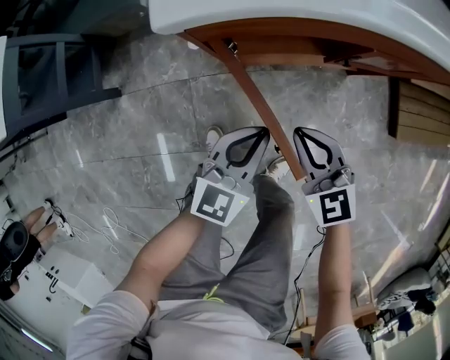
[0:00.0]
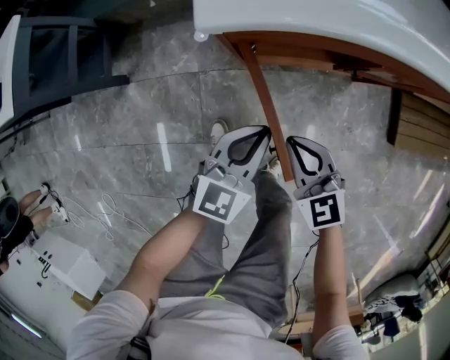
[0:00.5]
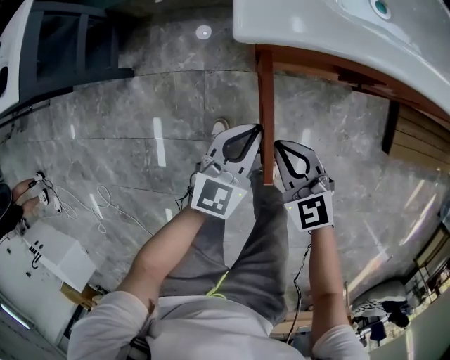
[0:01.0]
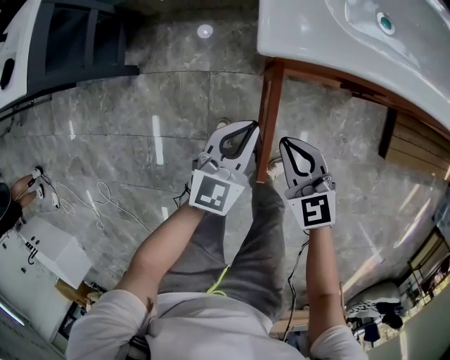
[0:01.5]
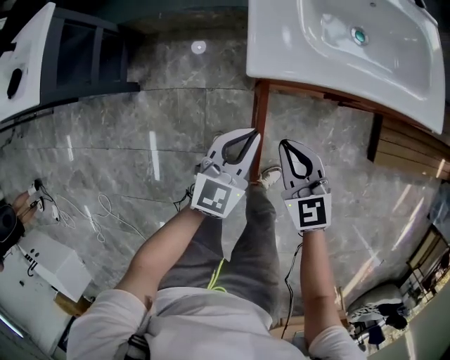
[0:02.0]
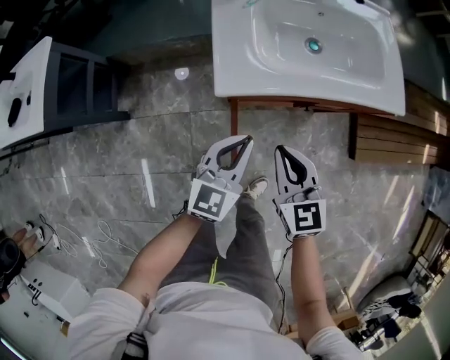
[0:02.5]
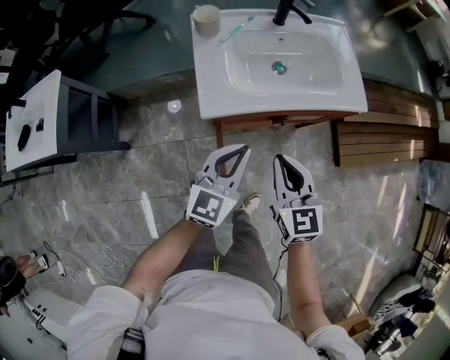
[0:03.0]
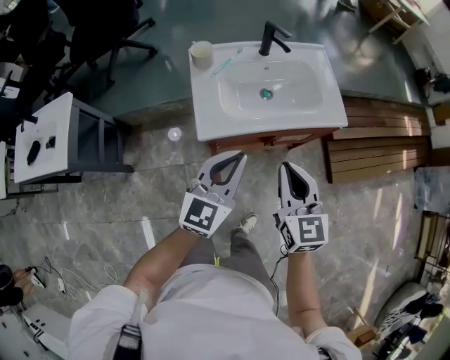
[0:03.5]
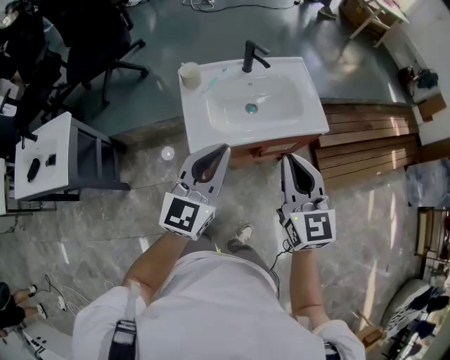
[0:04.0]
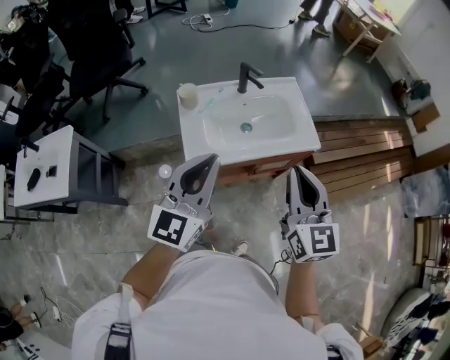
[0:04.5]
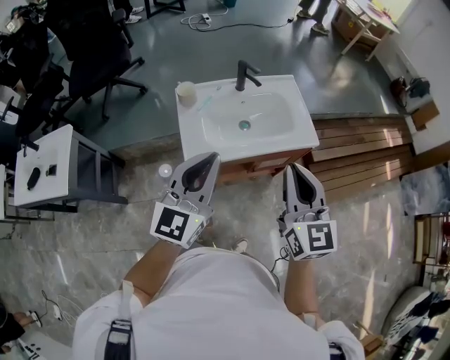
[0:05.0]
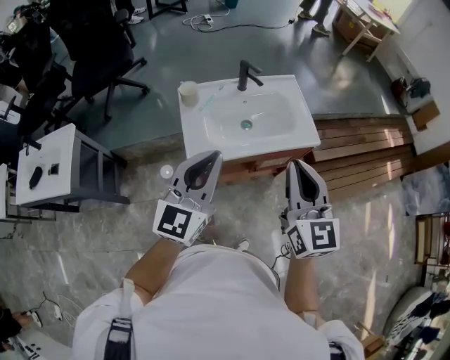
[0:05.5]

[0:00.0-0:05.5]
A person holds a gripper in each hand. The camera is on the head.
0.0 to 2.0 s: The grippers both shift upward and to the left by some 15 cm.
2.0 to 3.5 s: The right gripper heads upward and to the right, covering some 35 cm, and changes its angle by some 30 degrees. Meanwhile the left gripper is displaced upward by some 30 cm.
3.5 to 5.5 s: Both grippers travel together upward, about 15 cm.

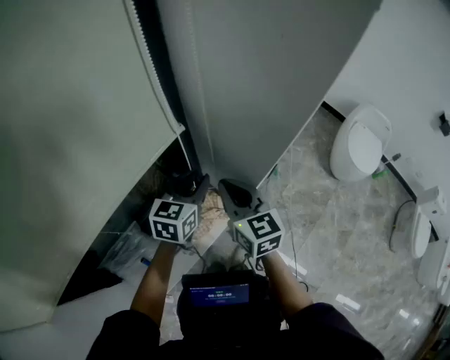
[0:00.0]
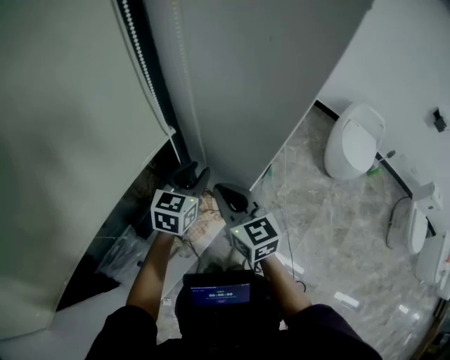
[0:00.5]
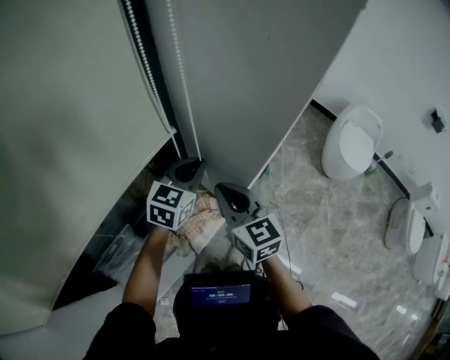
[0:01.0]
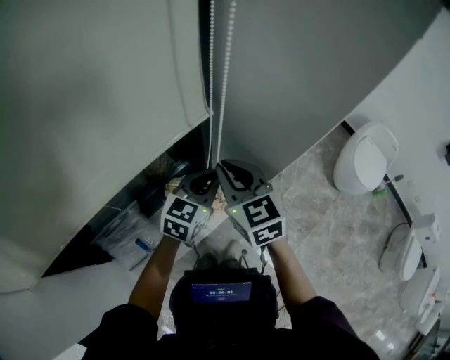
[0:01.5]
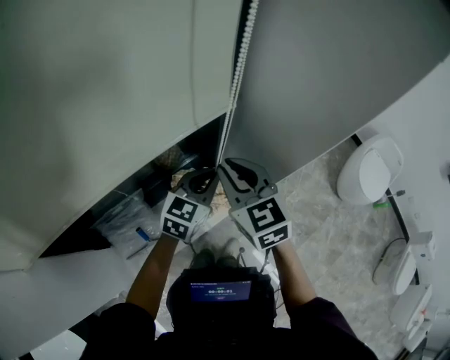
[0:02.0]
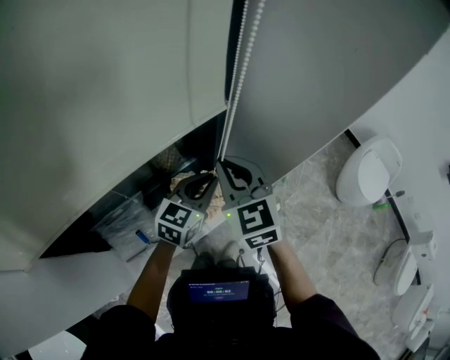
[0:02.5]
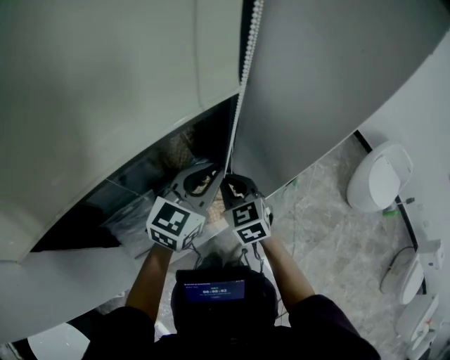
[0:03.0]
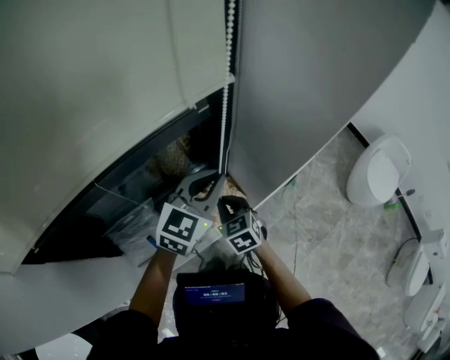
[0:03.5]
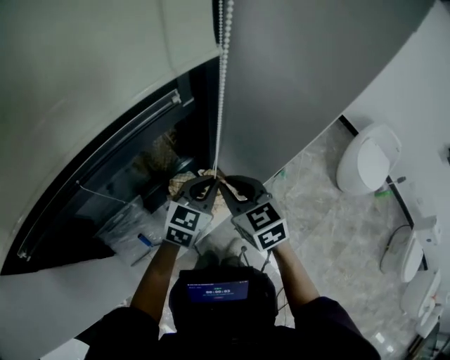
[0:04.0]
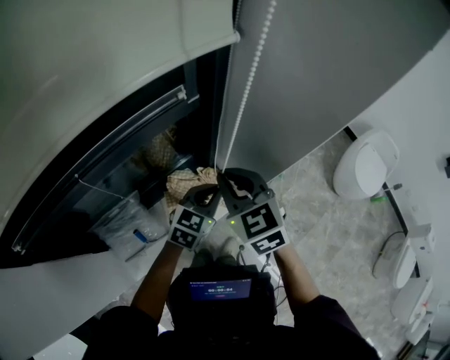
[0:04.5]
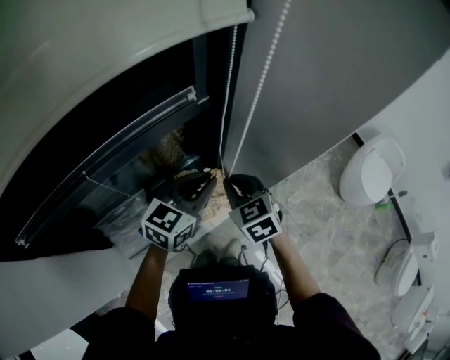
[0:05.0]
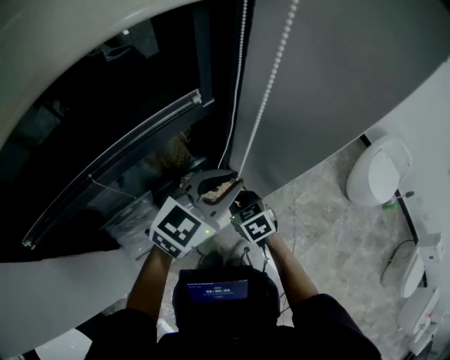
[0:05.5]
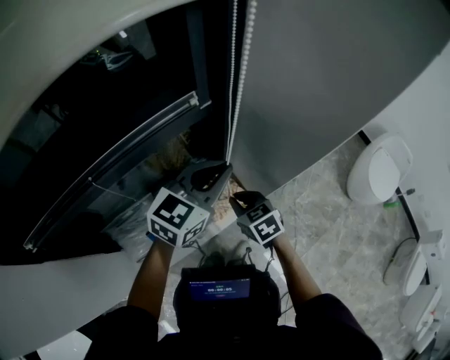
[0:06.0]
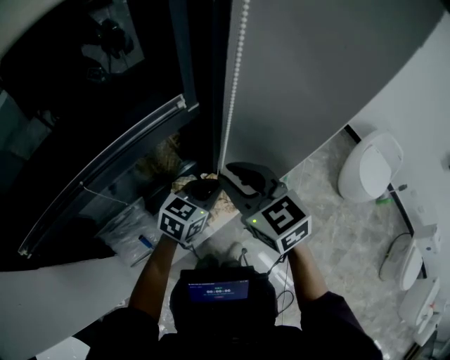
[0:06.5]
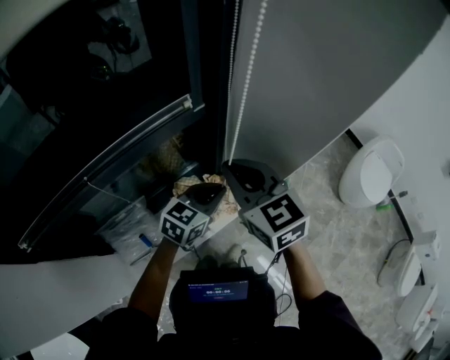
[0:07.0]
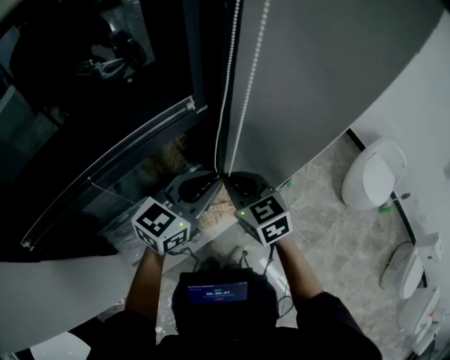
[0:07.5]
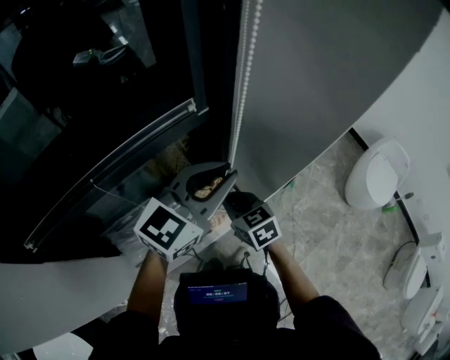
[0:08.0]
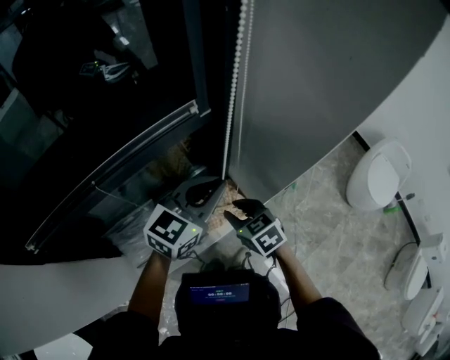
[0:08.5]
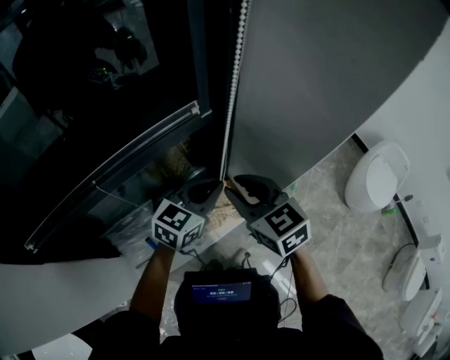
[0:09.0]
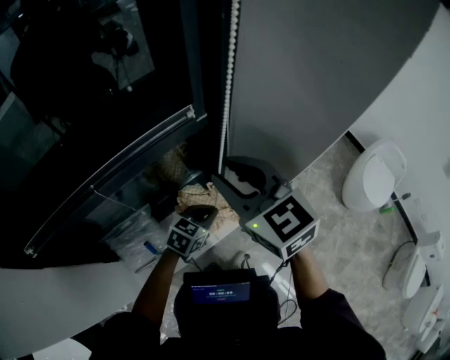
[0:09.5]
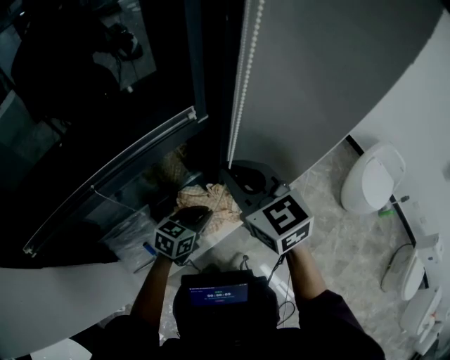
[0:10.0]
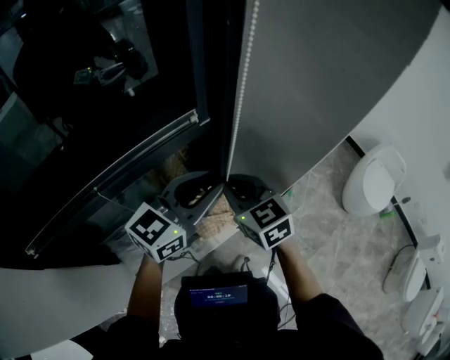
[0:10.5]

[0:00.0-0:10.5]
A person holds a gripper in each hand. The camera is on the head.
0.0 to 2.0 s: The left gripper heads backward, covering some 5 cm, and closes up. Meanwhile the right gripper moves to the left, roughly 10 cm, and rotates some 20 degrees.
2.0 to 4.0 s: The right gripper goes downward and returns, about 20 cm each way, while the left gripper travels upward and back again, about 10 cm each way.
4.0 to 6.5 s: The right gripper swings up and down, about 20 cm each way, with 2 reversals; the left gripper goes up and down, some 15 cm each way, reversing 2 times.
6.5 to 8.5 s: The right gripper is displaced downward by about 20 cm, and turns by some 20 degrees, while the left gripper heads upward, covering approximately 10 cm.
8.5 to 10.5 s: The right gripper heads upward and forward, covering roughly 15 cm, changes its angle by some 20 degrees, and closes up. The left gripper reaches roughly 20 cm downward, then returns.

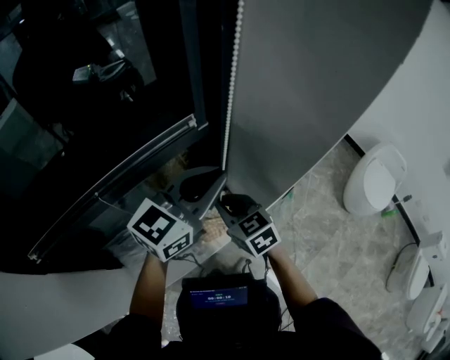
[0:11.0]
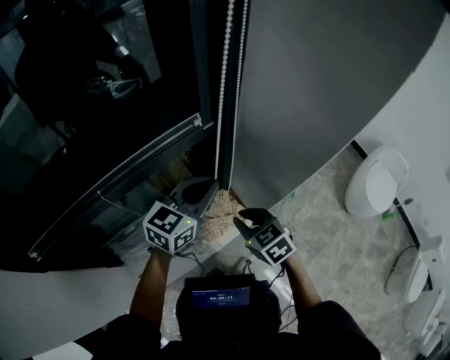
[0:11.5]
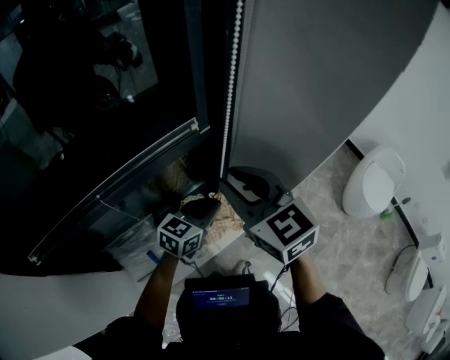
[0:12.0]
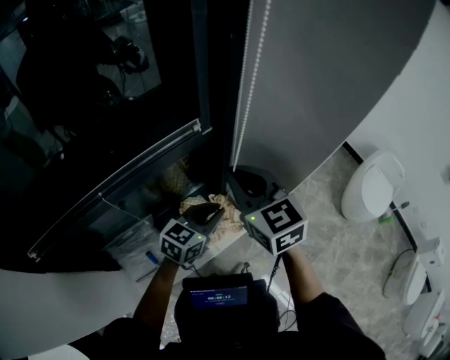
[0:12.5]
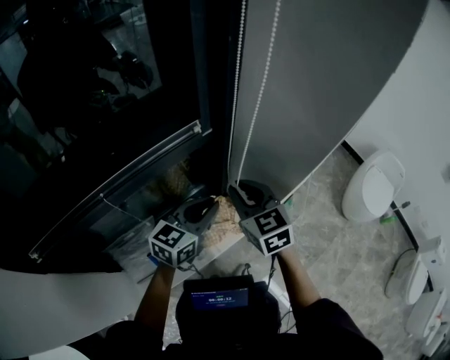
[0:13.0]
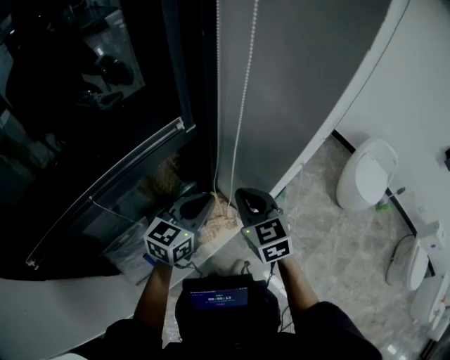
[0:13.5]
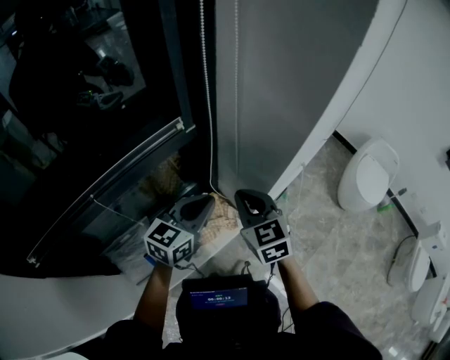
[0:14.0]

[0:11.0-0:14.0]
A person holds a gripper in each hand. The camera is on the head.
11.0 to 12.5 s: The right gripper goes some 15 cm upward. The left gripper heads downward, covering approximately 20 cm, and turns by roughly 20 degrees.
12.5 to 14.0 s: The right gripper goes some 10 cm downward and to the right. Meanwhile the left gripper is displaced upward by some 5 cm.

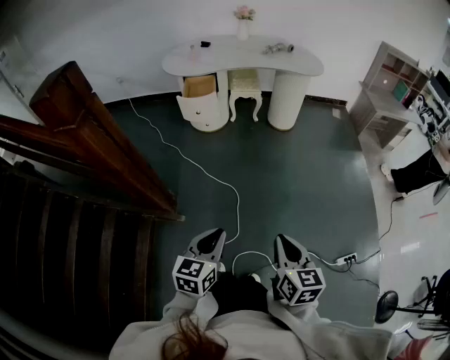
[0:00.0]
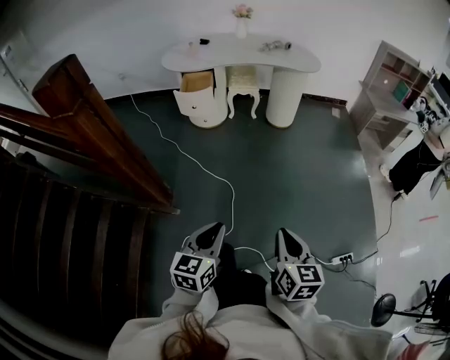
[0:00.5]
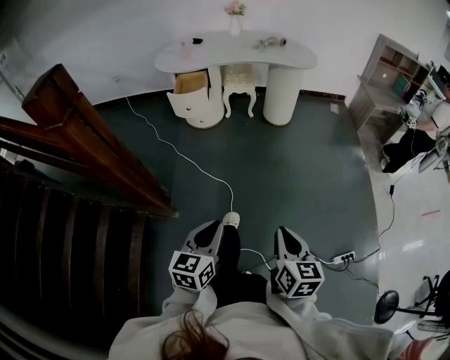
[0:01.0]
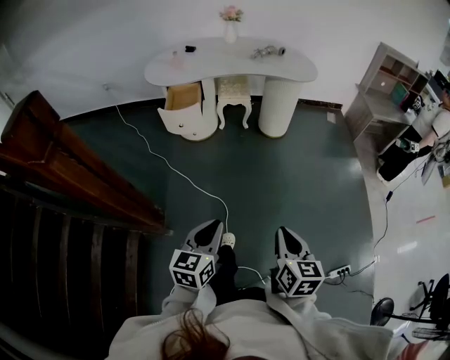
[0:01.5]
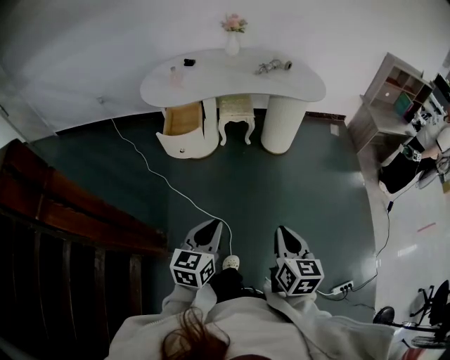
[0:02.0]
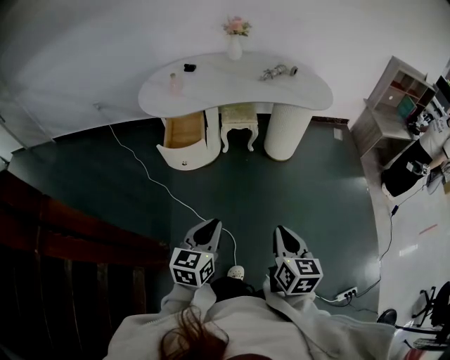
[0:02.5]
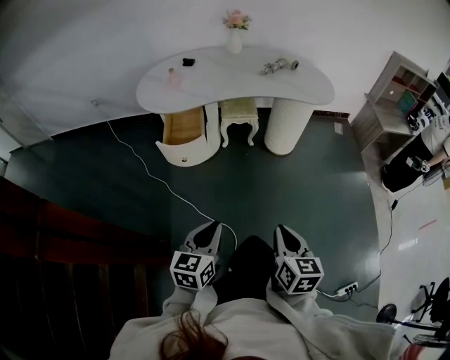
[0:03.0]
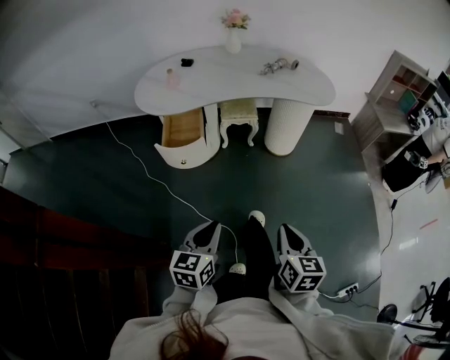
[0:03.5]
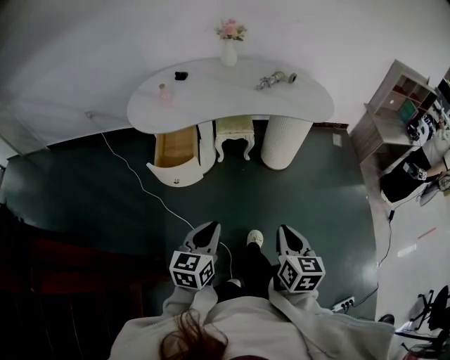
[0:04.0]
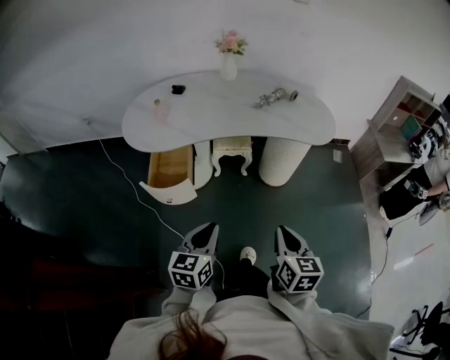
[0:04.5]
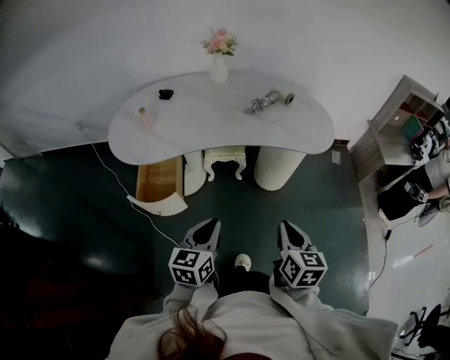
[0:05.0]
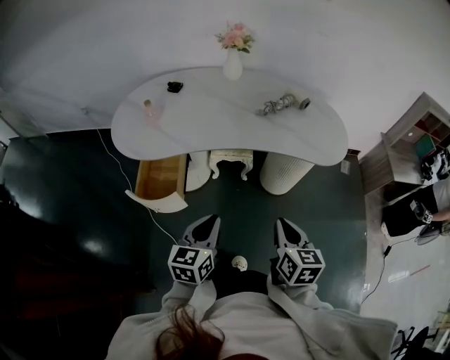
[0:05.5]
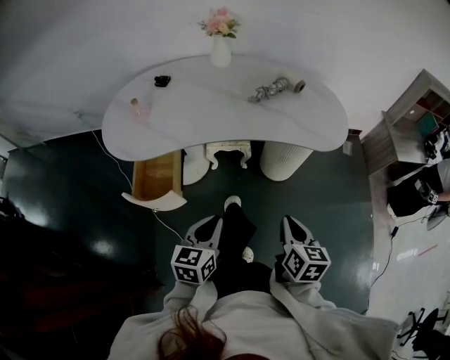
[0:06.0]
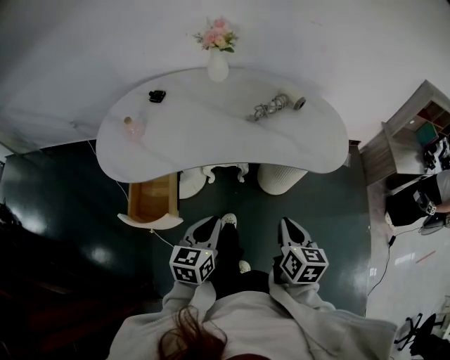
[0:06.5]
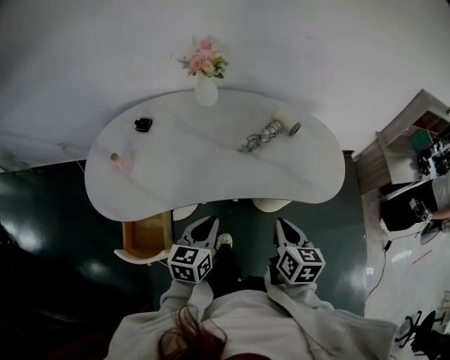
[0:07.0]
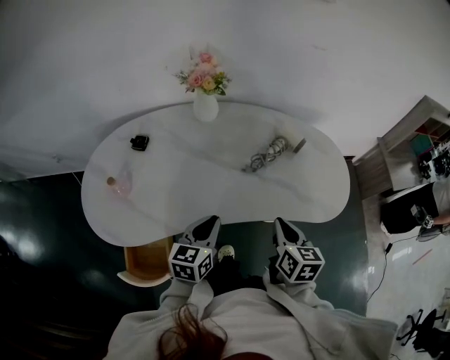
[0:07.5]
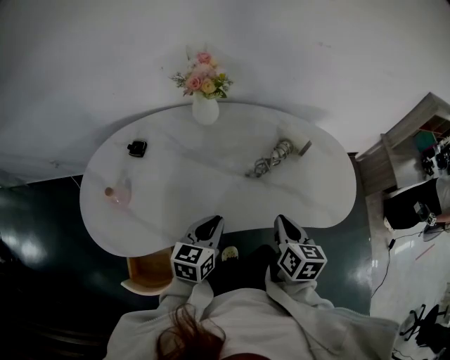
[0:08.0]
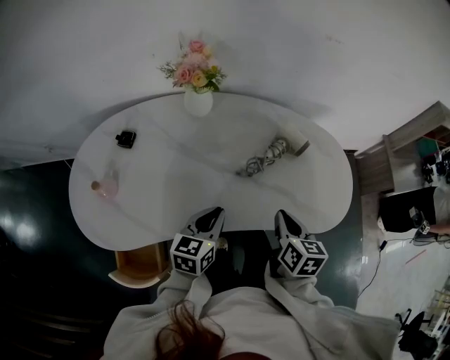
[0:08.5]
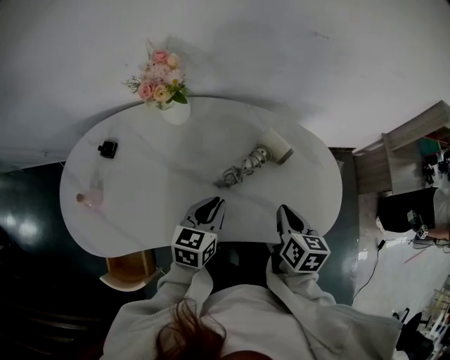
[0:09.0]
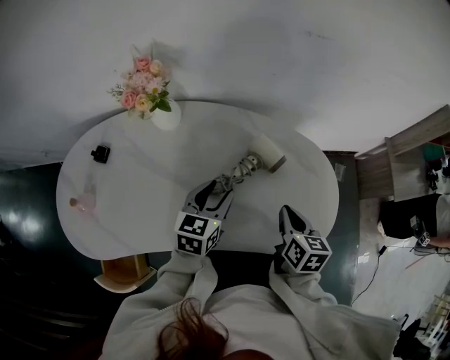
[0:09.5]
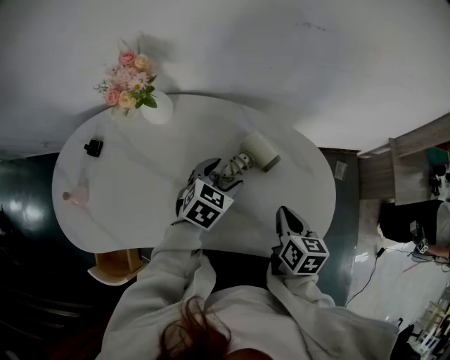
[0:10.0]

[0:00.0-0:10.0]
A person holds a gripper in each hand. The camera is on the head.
0.0 to 2.0 s: The two grippers go approximately 30 cm forward.
2.0 to 4.0 s: The two grippers go roughly 20 cm forward.
4.0 to 6.0 s: Both grippers move forward, about 25 cm.
6.0 to 8.0 s: Both grippers travel together forward, some 35 cm.
8.0 to 10.0 s: The left gripper travels forward and to the right by about 30 cm, changes its angle by some 30 degrees, and opens up. Meanwhile the right gripper is displaced to the right and forward by roughly 20 cm.
